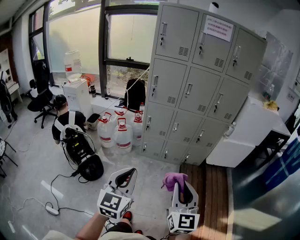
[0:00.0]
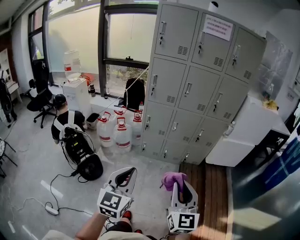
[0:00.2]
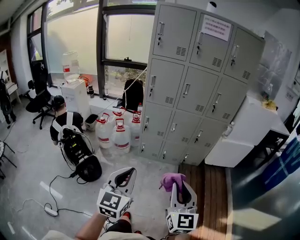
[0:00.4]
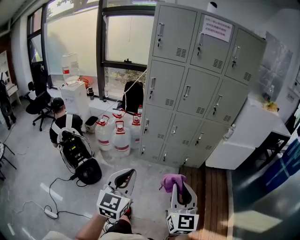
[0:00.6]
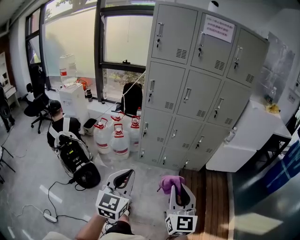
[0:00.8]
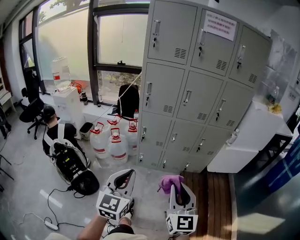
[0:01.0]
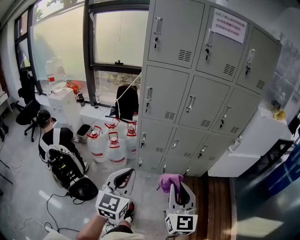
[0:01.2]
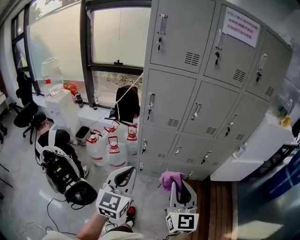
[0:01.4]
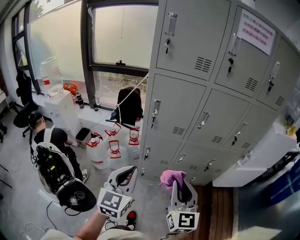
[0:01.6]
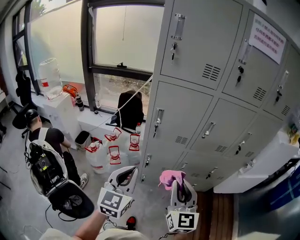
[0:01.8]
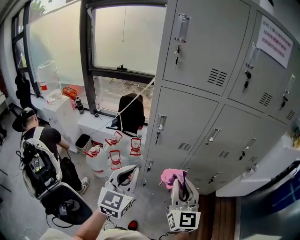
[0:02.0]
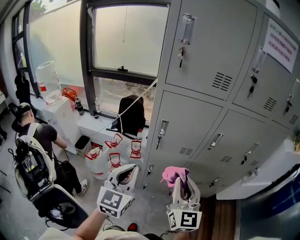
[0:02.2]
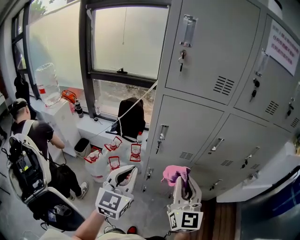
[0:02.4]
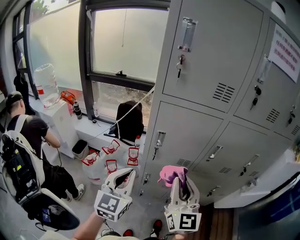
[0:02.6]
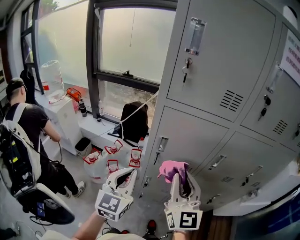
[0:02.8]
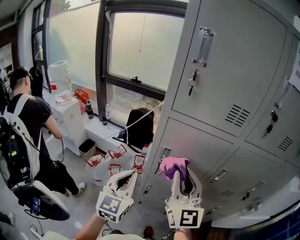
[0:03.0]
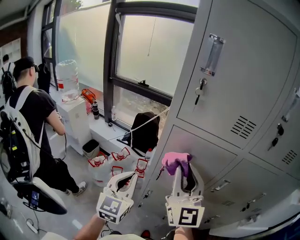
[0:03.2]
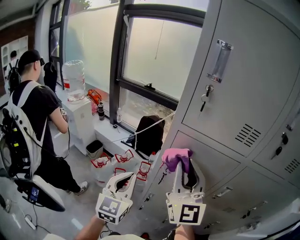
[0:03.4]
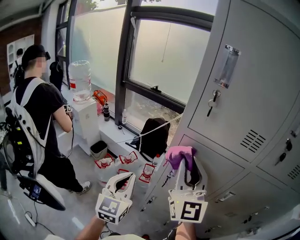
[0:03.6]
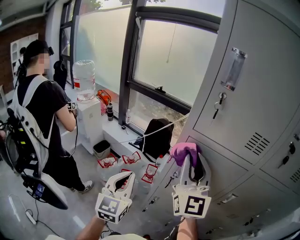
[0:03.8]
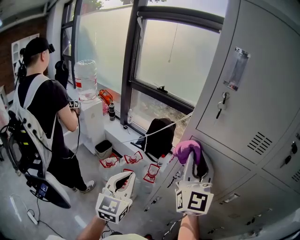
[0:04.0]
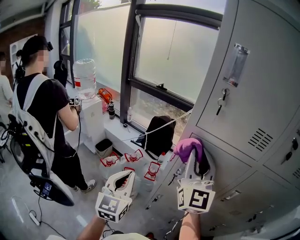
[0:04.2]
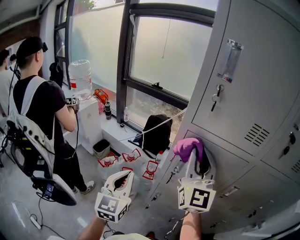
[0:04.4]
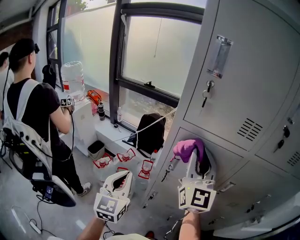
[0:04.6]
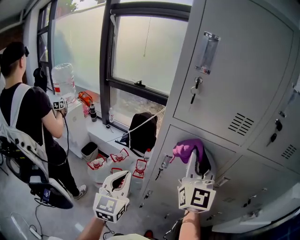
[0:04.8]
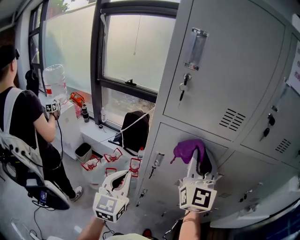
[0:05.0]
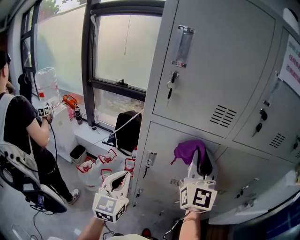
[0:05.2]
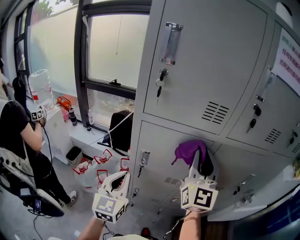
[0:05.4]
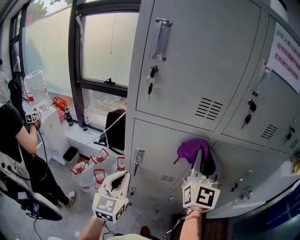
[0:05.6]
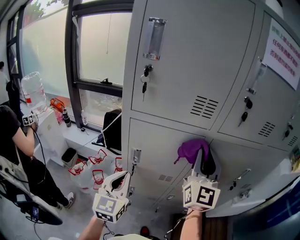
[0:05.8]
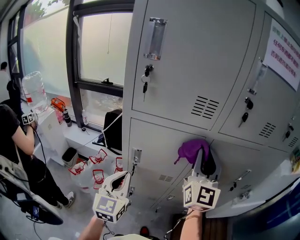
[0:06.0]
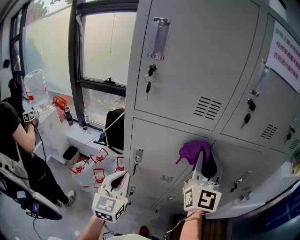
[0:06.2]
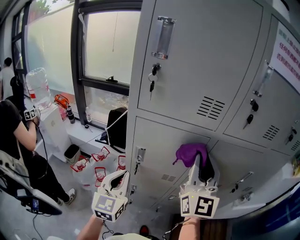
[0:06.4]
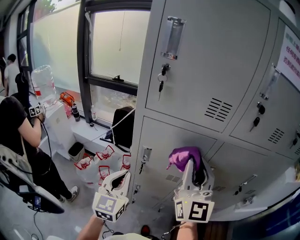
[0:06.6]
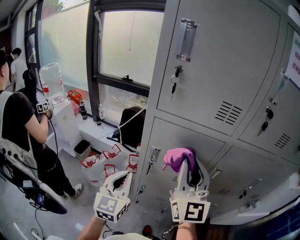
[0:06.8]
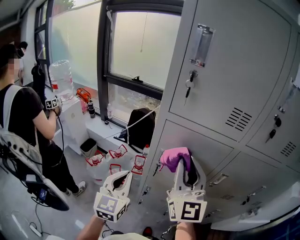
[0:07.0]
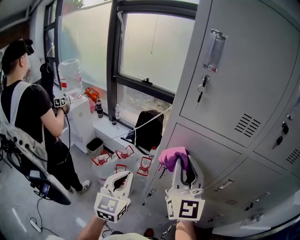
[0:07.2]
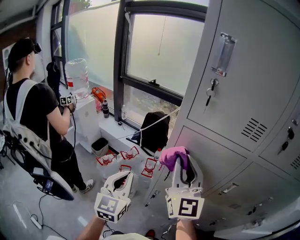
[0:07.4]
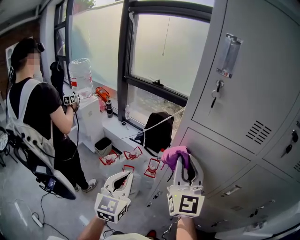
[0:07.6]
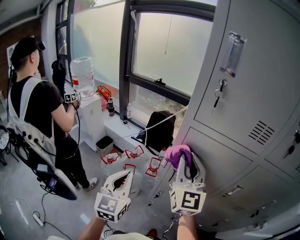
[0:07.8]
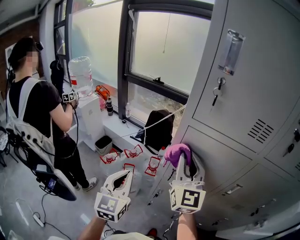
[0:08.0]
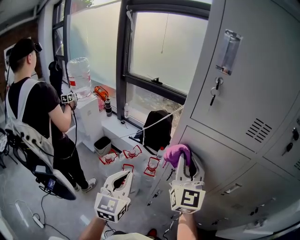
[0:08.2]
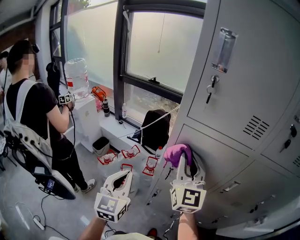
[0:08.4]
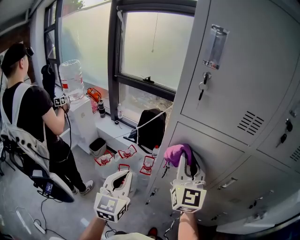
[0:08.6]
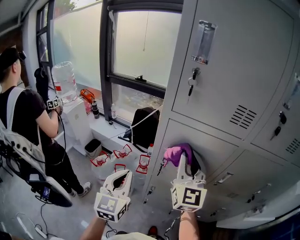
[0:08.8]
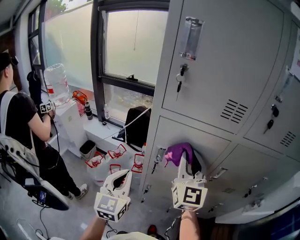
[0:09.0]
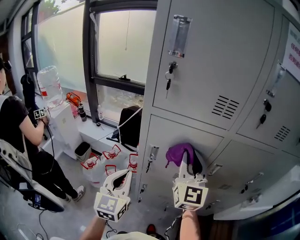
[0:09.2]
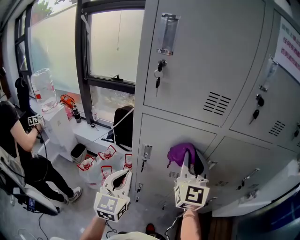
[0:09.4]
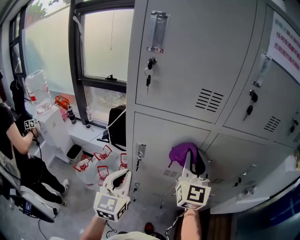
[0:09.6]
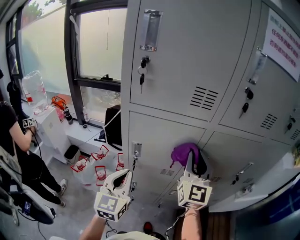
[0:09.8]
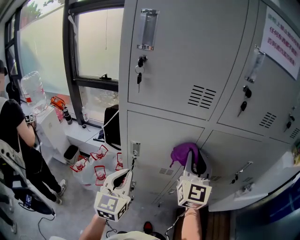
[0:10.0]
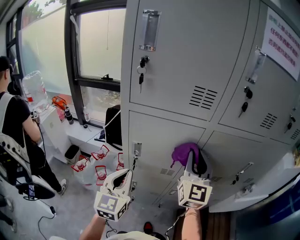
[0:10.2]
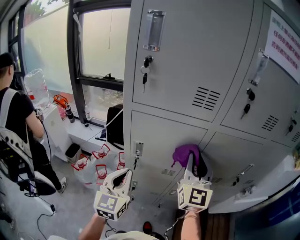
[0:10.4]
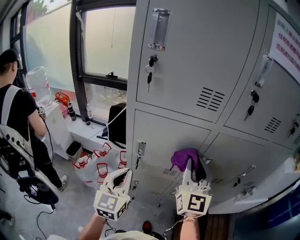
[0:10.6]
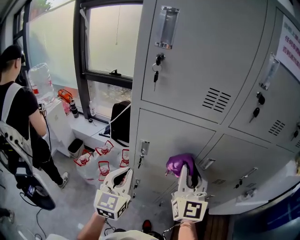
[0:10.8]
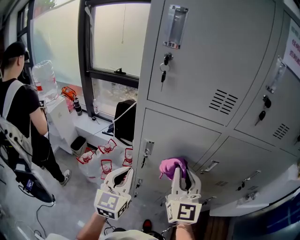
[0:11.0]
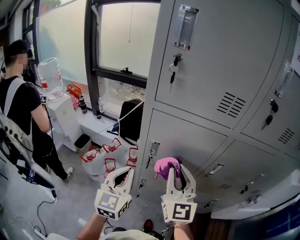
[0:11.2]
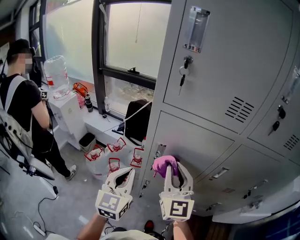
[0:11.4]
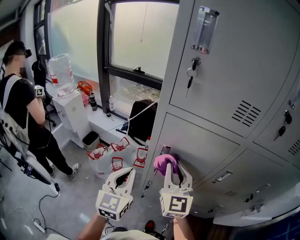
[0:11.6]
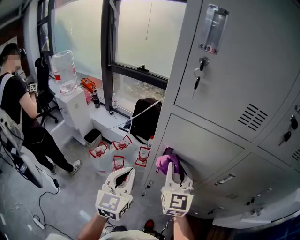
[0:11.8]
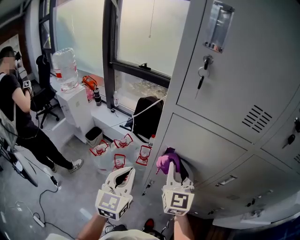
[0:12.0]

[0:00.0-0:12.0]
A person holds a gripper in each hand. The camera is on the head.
0:00.0 to 0:01.6: Both grippers are carried forward, roughly 40 cm.
0:01.6 to 0:03.0: The grippers both shift forward by some 25 cm. The right gripper turns by roughly 20 degrees.
0:03.0 to 0:04.4: The left gripper travels to the left by about 5 cm. Meanwhile the right gripper heads forward and upward, covering some 10 cm.
0:04.4 to 0:06.0: Both grippers move to the right, roughly 15 cm. The right gripper changes its angle by roughly 20 degrees.
0:06.0 to 0:07.6: The left gripper goes about 15 cm to the left; the right gripper travels to the left by about 25 cm, and turns by some 30 degrees.
0:07.6 to 0:09.0: The left gripper travels to the right by approximately 5 cm, while the right gripper moves to the right, roughly 10 cm.
0:09.0 to 0:10.4: The left gripper travels to the right by about 5 cm, while the right gripper heads to the right, covering about 10 cm.
0:10.4 to 0:12.0: The right gripper travels to the left and downward by some 20 cm, and rotates about 20 degrees; the left gripper is displaced to the left by approximately 10 cm.

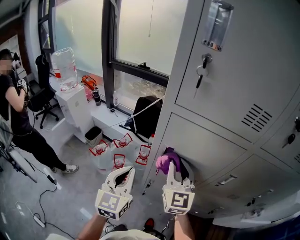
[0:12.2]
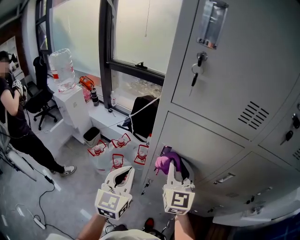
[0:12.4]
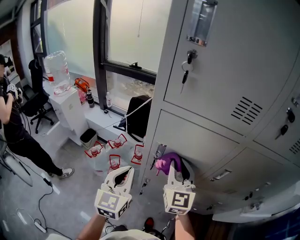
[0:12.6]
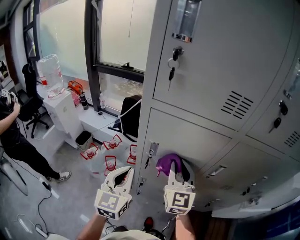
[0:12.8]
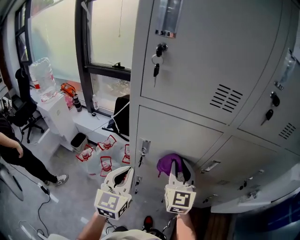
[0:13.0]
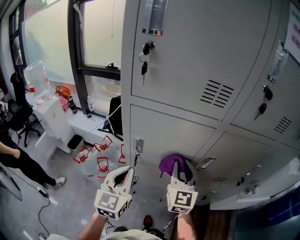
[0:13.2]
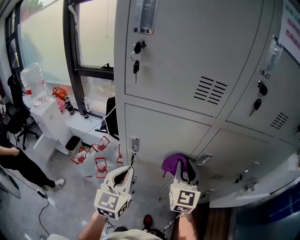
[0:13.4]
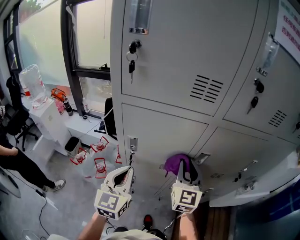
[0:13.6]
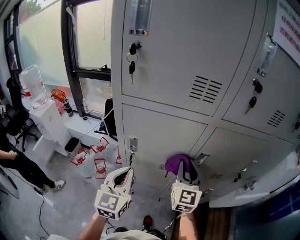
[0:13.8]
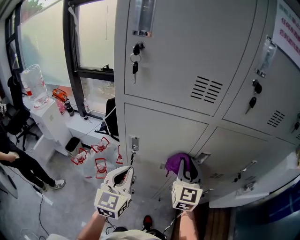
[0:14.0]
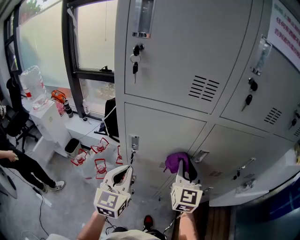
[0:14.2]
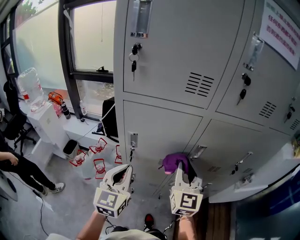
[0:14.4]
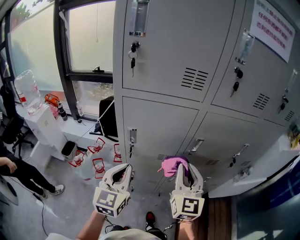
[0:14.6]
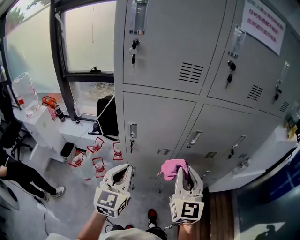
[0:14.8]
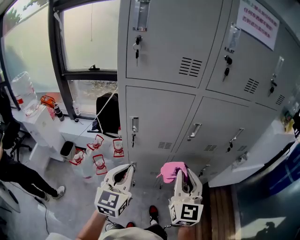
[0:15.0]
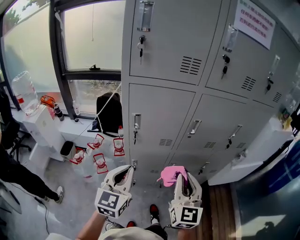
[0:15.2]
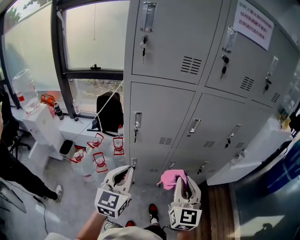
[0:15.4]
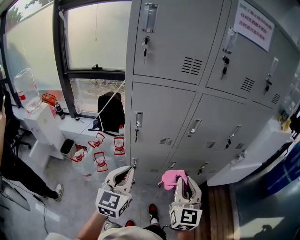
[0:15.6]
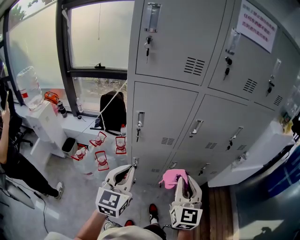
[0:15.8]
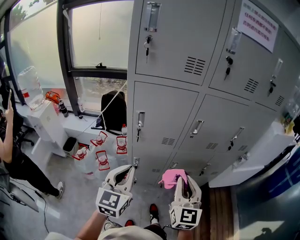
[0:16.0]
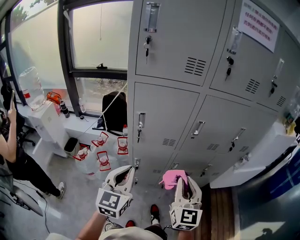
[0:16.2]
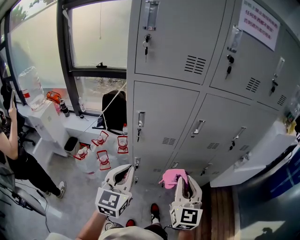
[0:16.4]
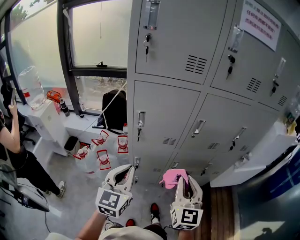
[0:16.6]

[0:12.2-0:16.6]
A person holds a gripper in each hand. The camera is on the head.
0:12.2 to 0:13.6: The right gripper shifts about 20 cm to the right, and swivels approximately 20 degrees; the left gripper travels to the right by some 10 cm.
0:13.6 to 0:15.2: The right gripper heads backward, covering some 25 cm; the left gripper moves backward, some 15 cm.
0:15.2 to 0:16.6: The grippers stay close to where they were, moving slightly.

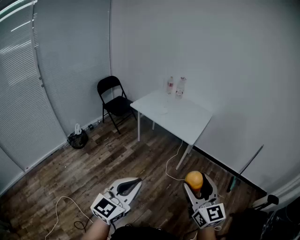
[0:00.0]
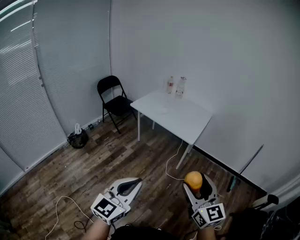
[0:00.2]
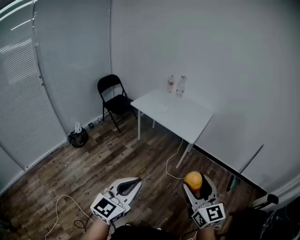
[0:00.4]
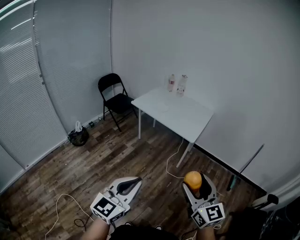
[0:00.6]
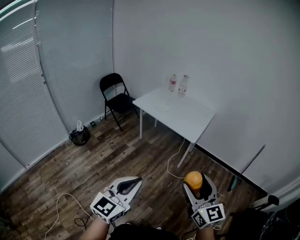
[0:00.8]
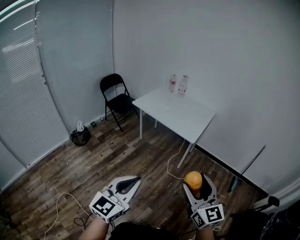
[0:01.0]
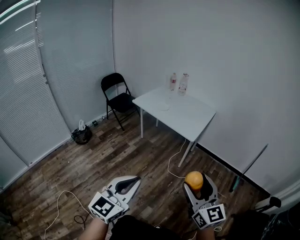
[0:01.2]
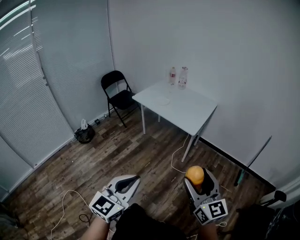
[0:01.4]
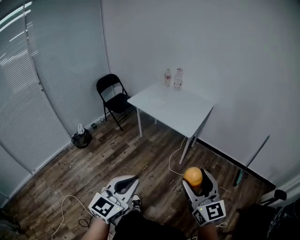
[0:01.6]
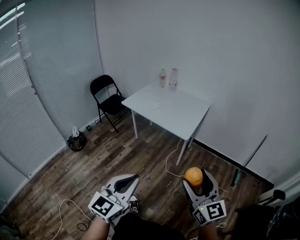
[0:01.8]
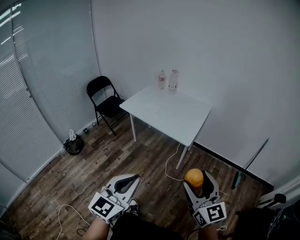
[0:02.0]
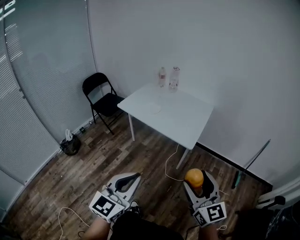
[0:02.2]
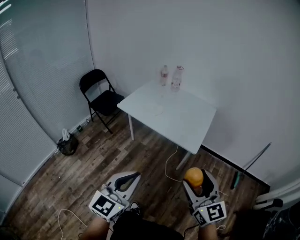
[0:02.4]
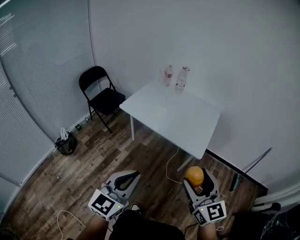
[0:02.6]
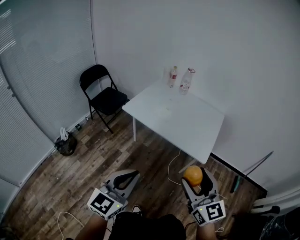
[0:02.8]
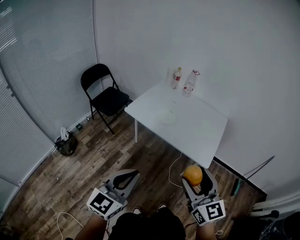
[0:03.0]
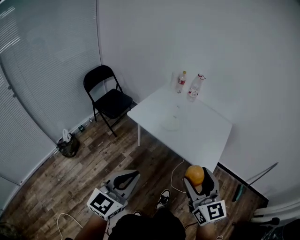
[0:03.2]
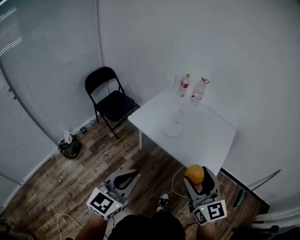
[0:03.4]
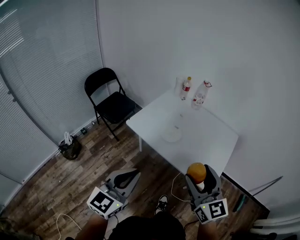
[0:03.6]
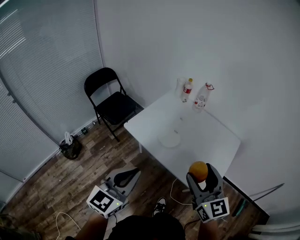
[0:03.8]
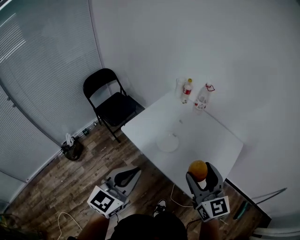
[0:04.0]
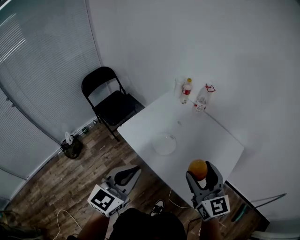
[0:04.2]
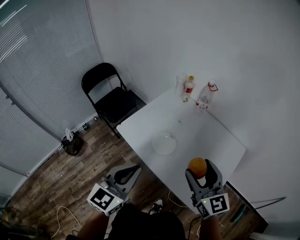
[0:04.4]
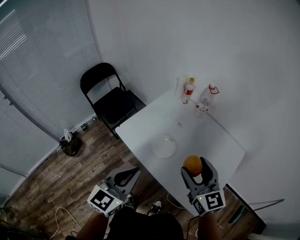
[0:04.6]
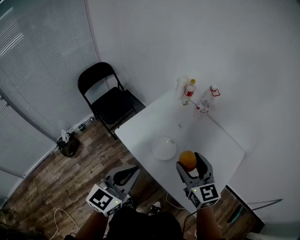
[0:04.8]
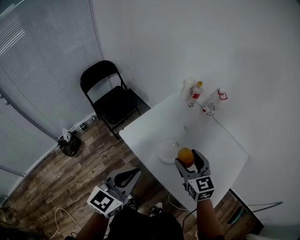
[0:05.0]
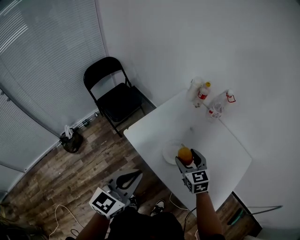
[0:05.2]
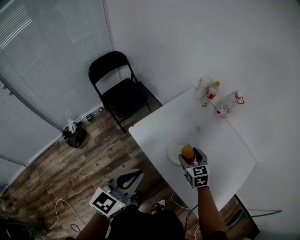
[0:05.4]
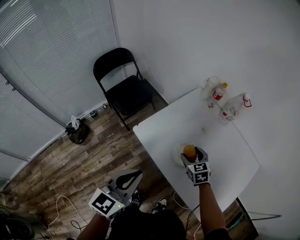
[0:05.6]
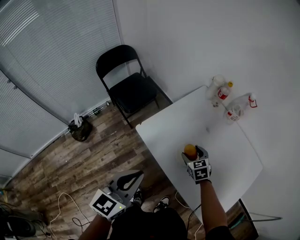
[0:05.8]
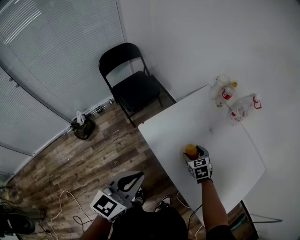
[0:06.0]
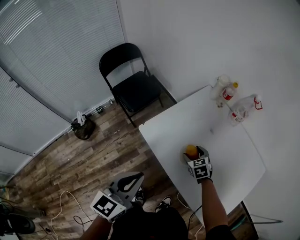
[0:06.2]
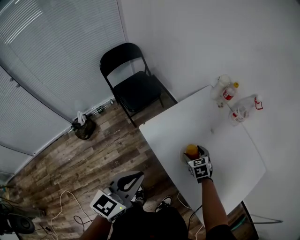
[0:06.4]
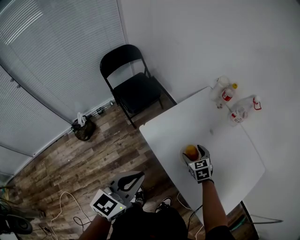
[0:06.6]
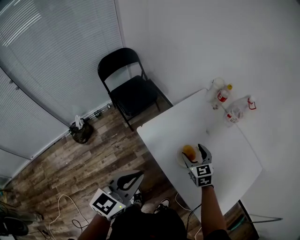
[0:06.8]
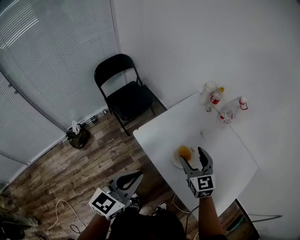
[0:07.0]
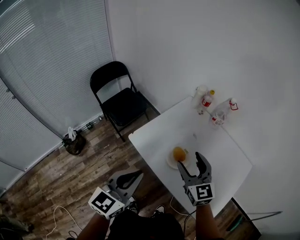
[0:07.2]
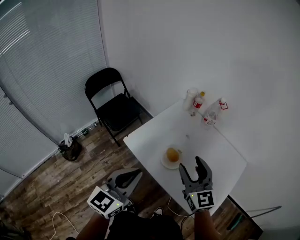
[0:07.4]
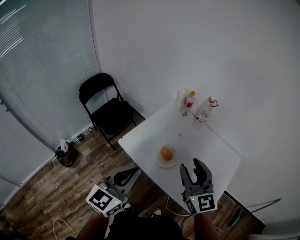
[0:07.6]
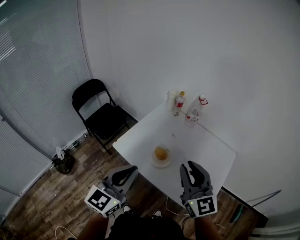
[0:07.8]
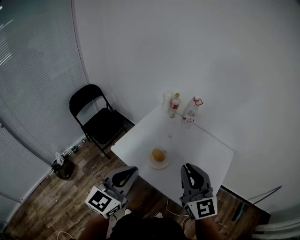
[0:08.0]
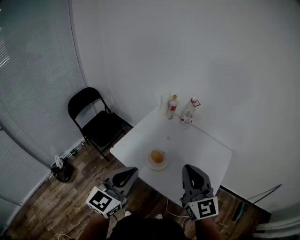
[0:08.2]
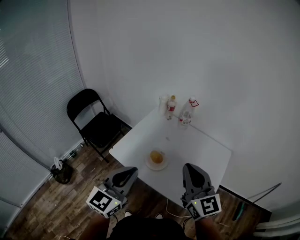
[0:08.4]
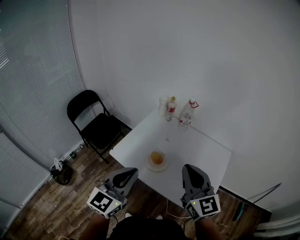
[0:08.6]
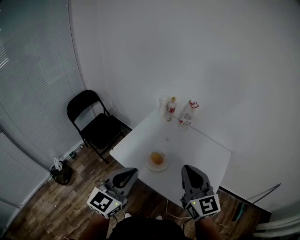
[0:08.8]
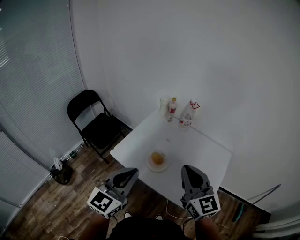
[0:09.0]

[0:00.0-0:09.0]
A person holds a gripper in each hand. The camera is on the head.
0:00.0 to 0:01.6: Both grippers travel together to the right, approximately 10 cm.
0:01.6 to 0:03.0: Both grippers are carried forward and to the left, roughly 50 cm.
0:03.0 to 0:04.4: The two grippers go roughly 40 cm forward.
0:04.4 to 0:06.0: The right gripper is displaced downward, forward and to the left by some 40 cm, and tilts its fingers approximately 40 degrees downward. Meanwhile the left gripper goes approximately 15 cm to the left, forward and downward.
0:06.0 to 0:07.6: The right gripper travels upward and backward by about 40 cm, and tilts its fingers roughly 50 degrees upward; the left gripper moves upward, roughly 10 cm.
0:07.6 to 0:09.0: The right gripper changes place by roughly 5 cm, and closes.
